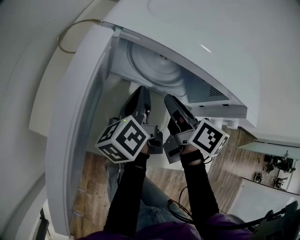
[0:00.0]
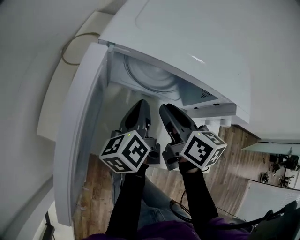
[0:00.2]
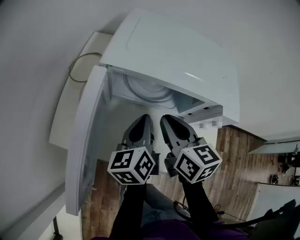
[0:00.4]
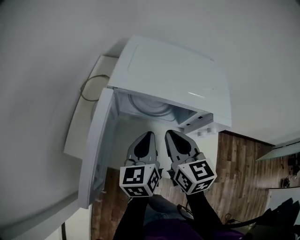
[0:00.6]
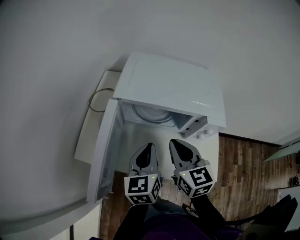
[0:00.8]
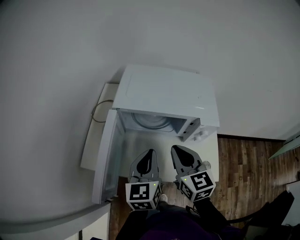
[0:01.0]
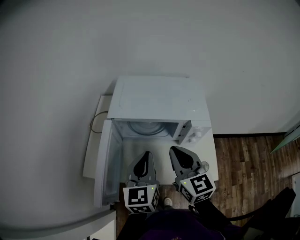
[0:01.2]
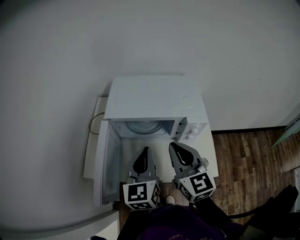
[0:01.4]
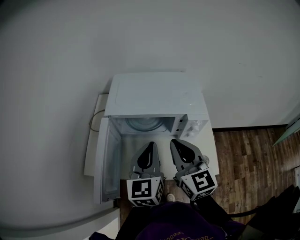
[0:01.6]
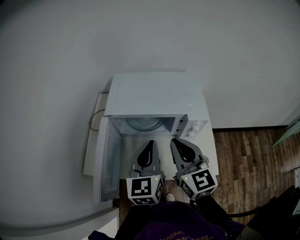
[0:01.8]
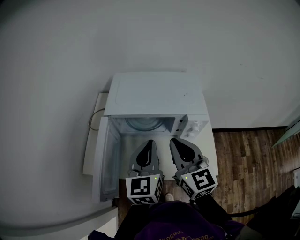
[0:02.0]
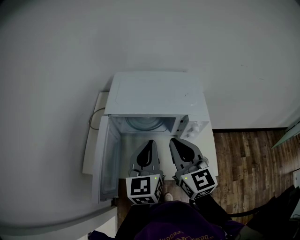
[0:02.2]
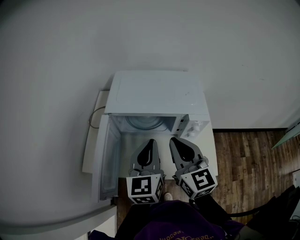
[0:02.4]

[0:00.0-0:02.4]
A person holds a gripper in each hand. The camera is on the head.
0.0 to 1.2 s: Both grippers travel together upward and backward, about 25 cm. The left gripper rotates around the line of its fingers by approximately 60 degrees, clockwise from behind, while the right gripper turns by about 40 degrees, and closes its fingers.
1.2 to 2.4 s: The grippers move only a little.

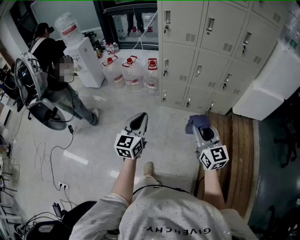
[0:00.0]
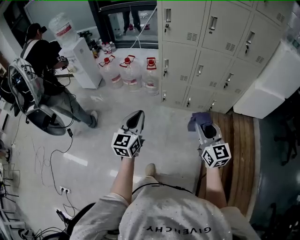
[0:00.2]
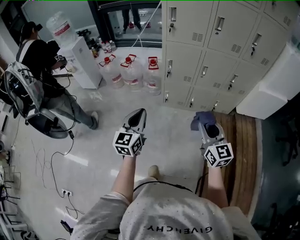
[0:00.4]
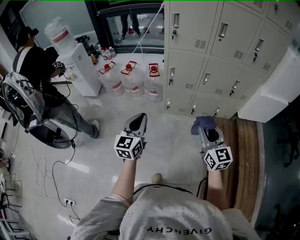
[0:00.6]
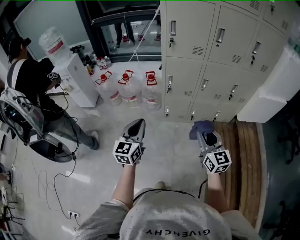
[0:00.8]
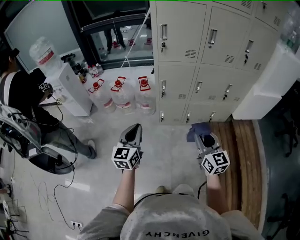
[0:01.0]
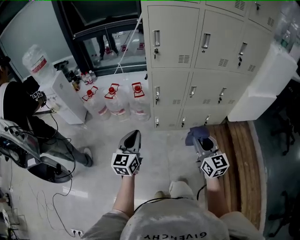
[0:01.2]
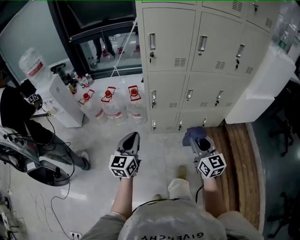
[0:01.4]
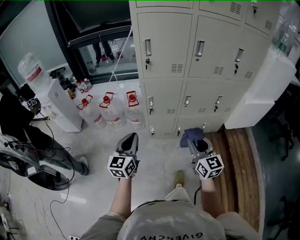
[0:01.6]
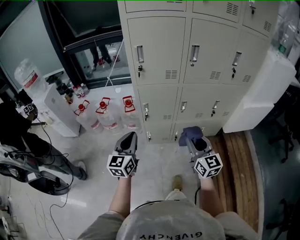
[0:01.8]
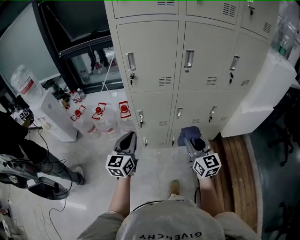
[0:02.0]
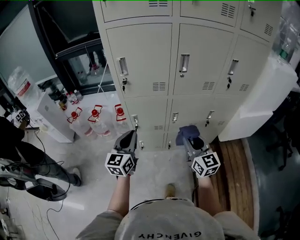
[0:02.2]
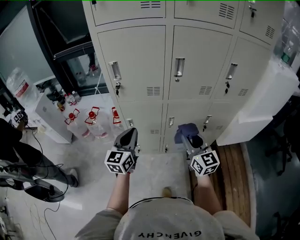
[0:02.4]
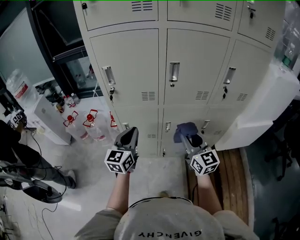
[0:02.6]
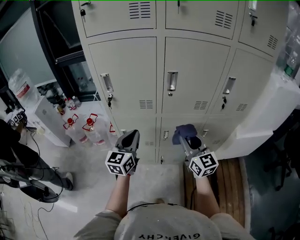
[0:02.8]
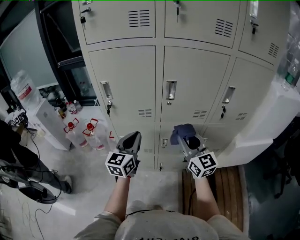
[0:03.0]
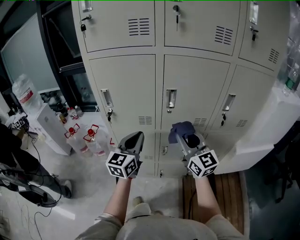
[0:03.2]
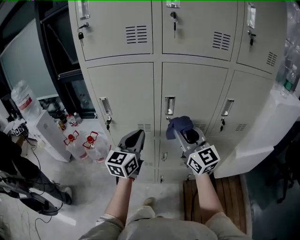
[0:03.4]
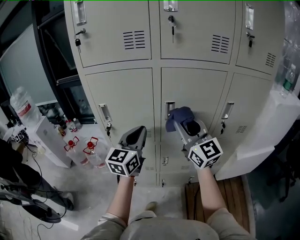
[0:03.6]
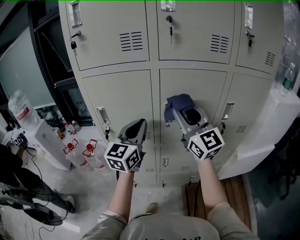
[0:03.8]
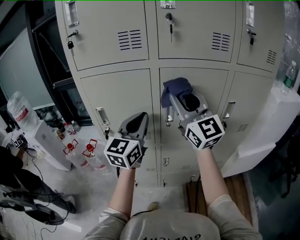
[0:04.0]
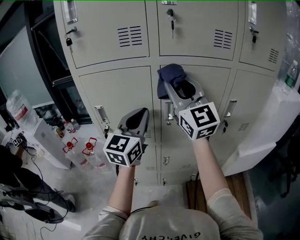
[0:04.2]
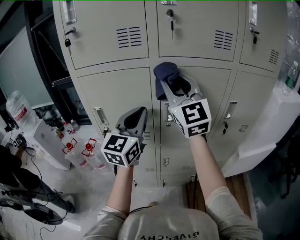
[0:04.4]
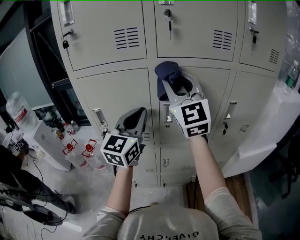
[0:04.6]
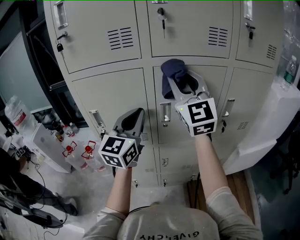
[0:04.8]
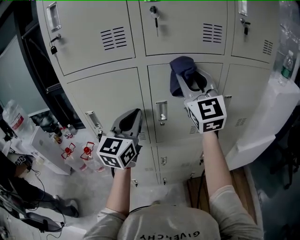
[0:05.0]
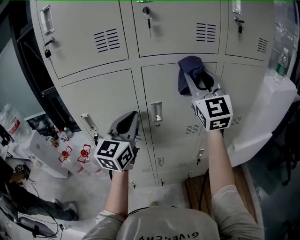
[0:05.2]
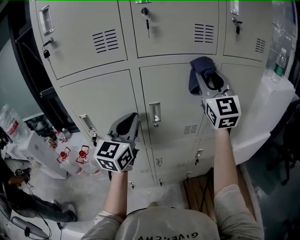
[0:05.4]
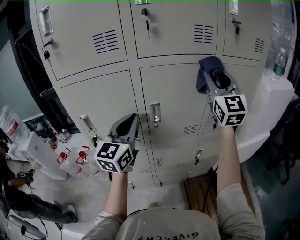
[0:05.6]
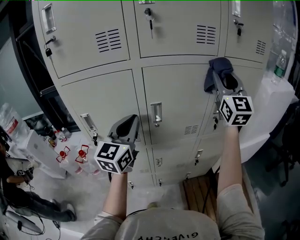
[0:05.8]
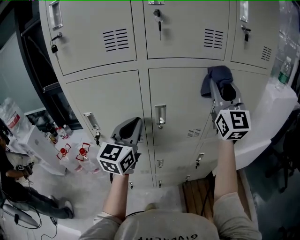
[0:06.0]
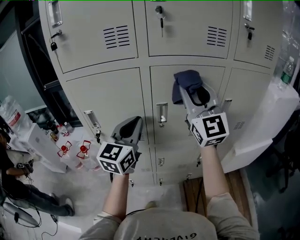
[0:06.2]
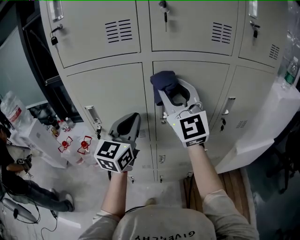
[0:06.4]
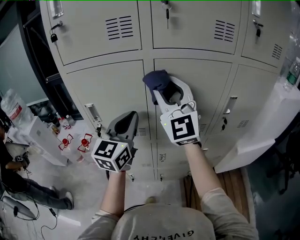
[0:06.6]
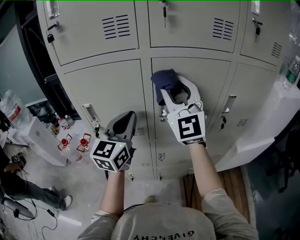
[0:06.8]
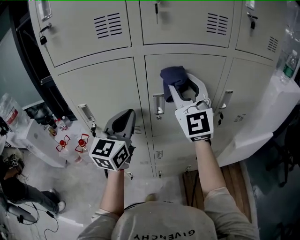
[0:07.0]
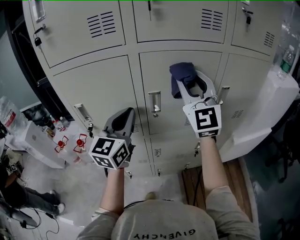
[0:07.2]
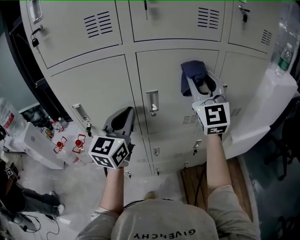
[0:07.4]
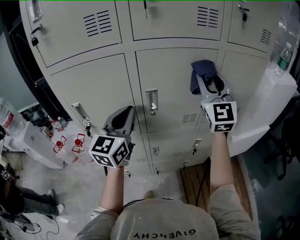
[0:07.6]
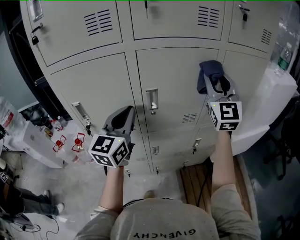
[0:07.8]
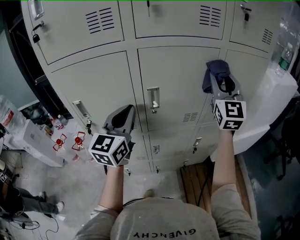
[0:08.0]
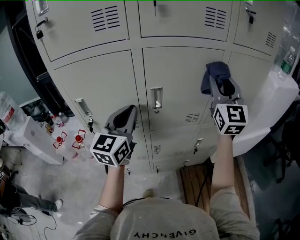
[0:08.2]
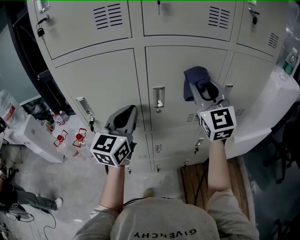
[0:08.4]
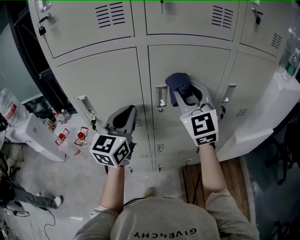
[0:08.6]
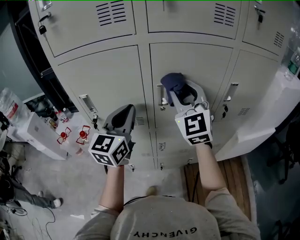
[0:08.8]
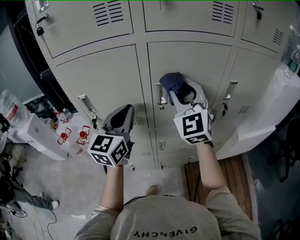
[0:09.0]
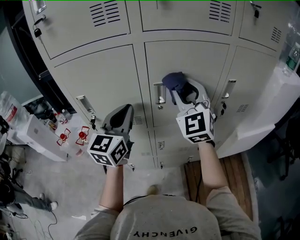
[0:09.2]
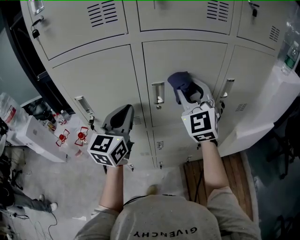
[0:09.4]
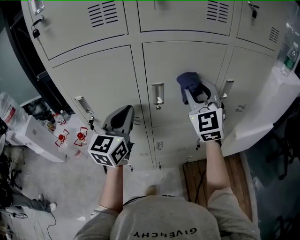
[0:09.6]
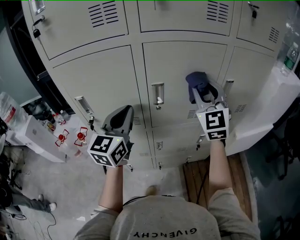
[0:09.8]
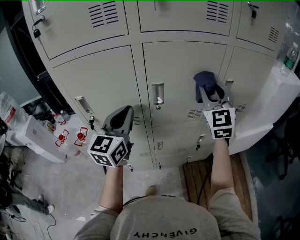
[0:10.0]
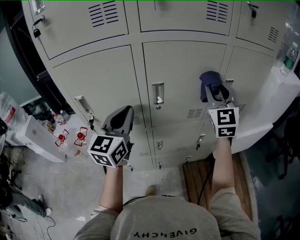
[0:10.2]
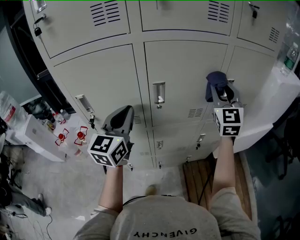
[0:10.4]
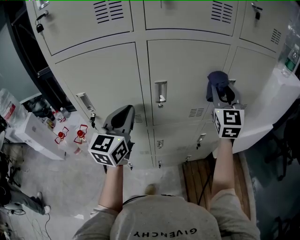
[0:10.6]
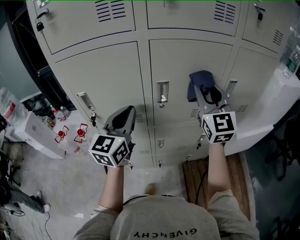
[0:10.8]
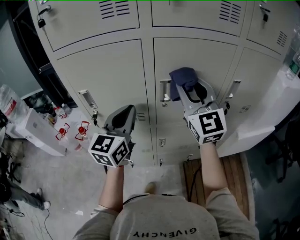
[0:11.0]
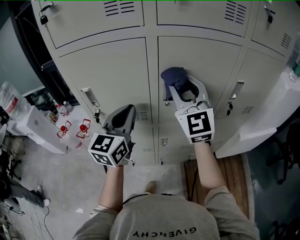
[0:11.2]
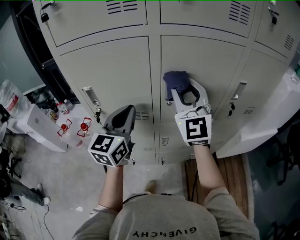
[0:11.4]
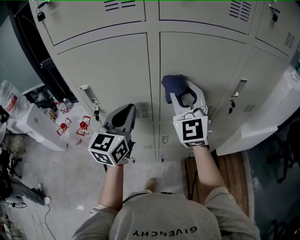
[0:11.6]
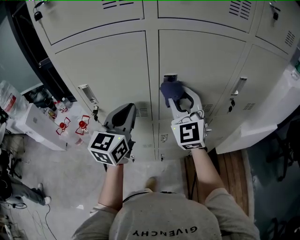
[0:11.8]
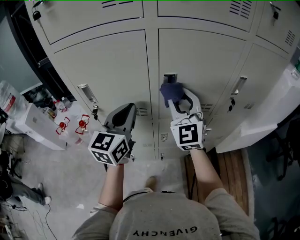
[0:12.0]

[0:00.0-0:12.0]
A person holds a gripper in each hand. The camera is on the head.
0.0 to 1.6 s: Both grippers travel together forward, about 25 cm.
1.6 to 3.0 s: The grippers both shift forward and to the right by roughly 35 cm.
3.0 to 4.4 s: Both grippers travel together upward and forward, some 25 cm. The right gripper swivels approximately 30 degrees.
4.4 to 6.0 s: The right gripper travels to the right by about 20 cm.
6.0 to 7.6 s: The right gripper goes about 5 cm downward, and goes to the left and returns, about 20 cm each way.
7.6 to 9.0 s: The right gripper is displaced to the left and downward by some 15 cm.
9.0 to 10.4 s: The right gripper travels to the right by about 15 cm.
10.4 to 12.0 s: The right gripper travels to the left by some 20 cm.

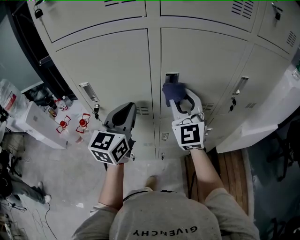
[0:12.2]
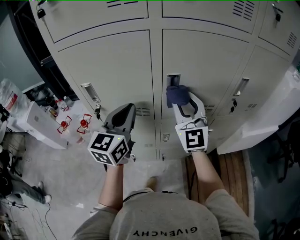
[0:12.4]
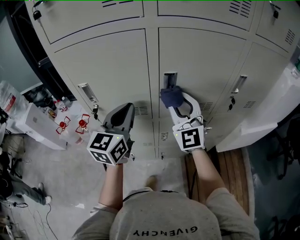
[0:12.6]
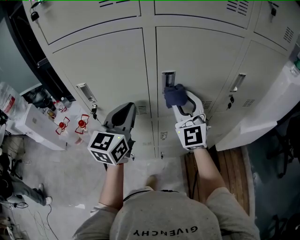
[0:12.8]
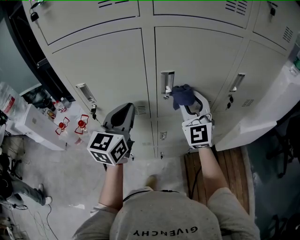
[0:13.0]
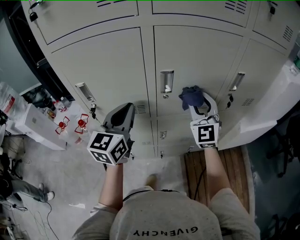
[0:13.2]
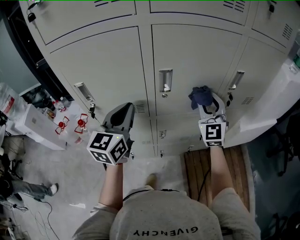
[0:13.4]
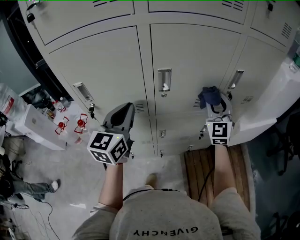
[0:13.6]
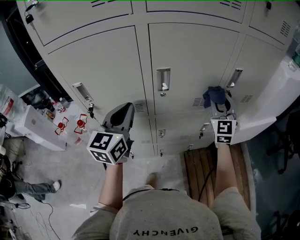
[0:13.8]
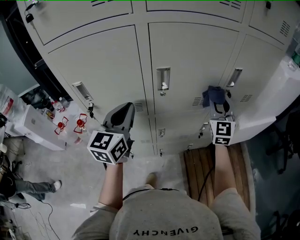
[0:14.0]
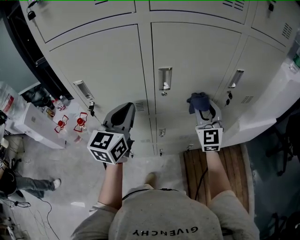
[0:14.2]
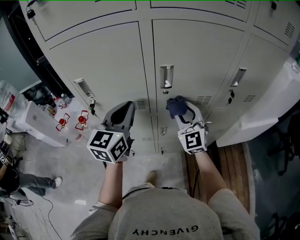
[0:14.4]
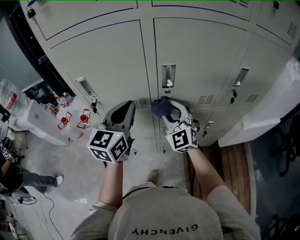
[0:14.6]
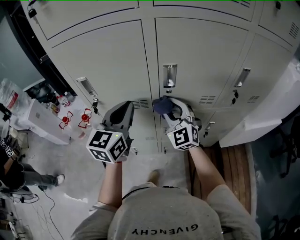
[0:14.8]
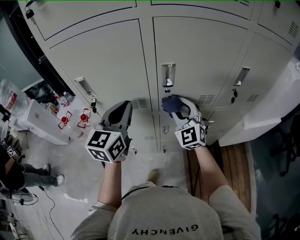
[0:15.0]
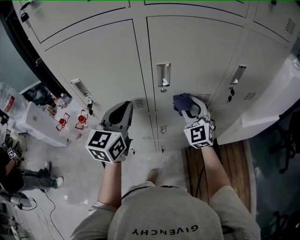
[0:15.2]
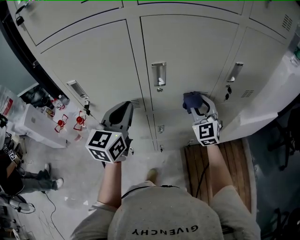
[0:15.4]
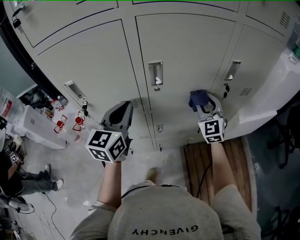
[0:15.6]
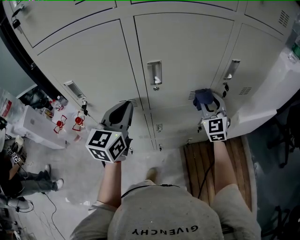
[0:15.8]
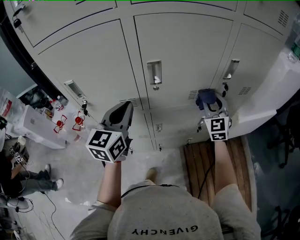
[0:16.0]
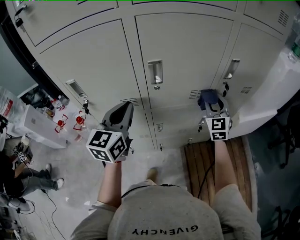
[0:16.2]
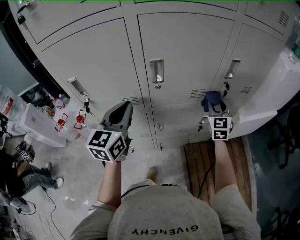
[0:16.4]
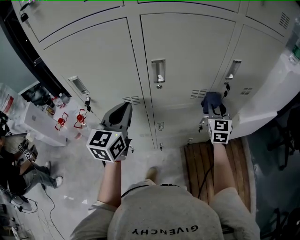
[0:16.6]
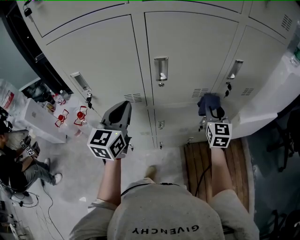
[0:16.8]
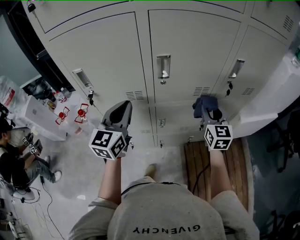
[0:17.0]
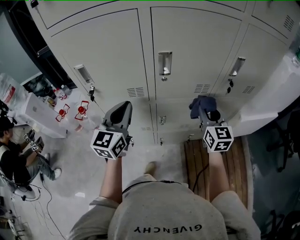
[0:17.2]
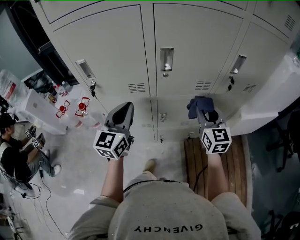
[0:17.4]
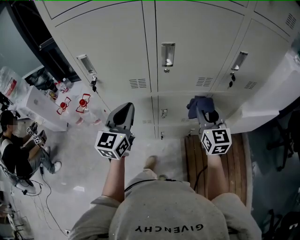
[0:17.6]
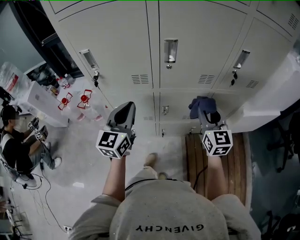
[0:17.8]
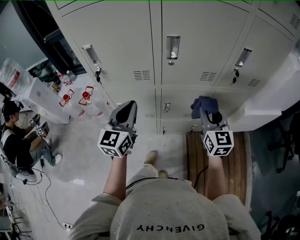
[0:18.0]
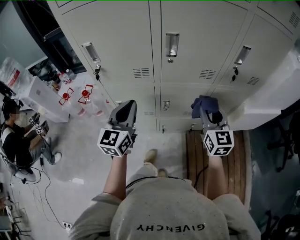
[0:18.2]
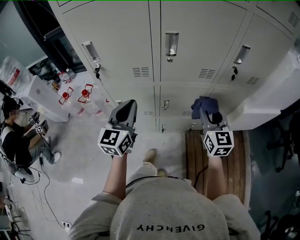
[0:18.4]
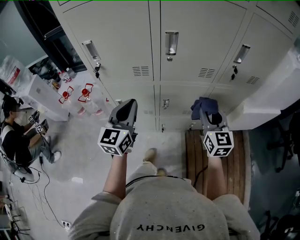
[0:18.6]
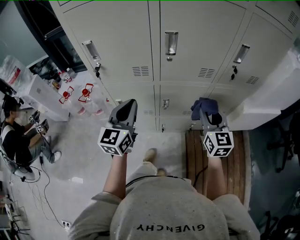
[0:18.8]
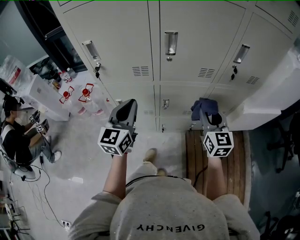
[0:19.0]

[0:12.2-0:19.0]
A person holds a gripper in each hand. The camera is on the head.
12.2 to 13.6 s: The right gripper goes roughly 20 cm to the right.
13.6 to 15.0 s: The right gripper moves to the left and downward, approximately 20 cm, and rotates some 20 degrees.
15.0 to 16.2 s: The right gripper travels to the right by some 20 cm, and turns by about 30 degrees.
16.2 to 17.6 s: The left gripper shifts roughly 10 cm downward and backward, while the right gripper heads backward and to the left, covering approximately 15 cm, and rotates some 30 degrees.
17.6 to 19.0 s: The right gripper changes place by about 5 cm.

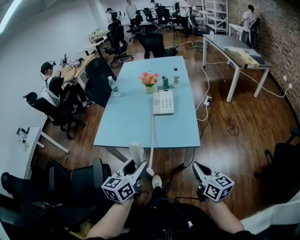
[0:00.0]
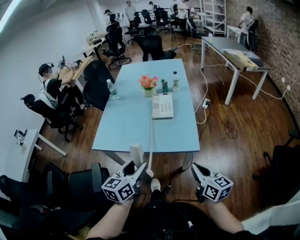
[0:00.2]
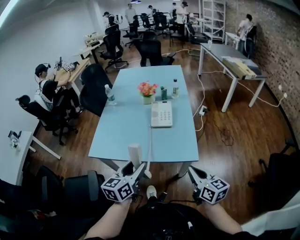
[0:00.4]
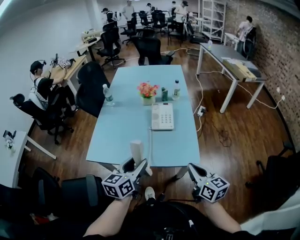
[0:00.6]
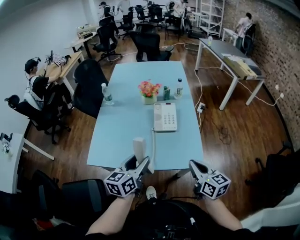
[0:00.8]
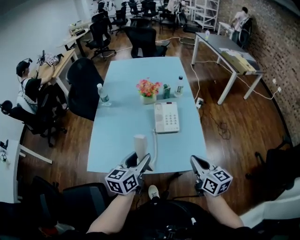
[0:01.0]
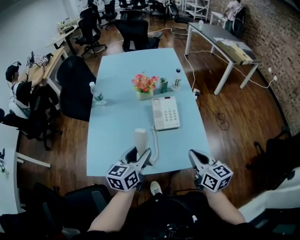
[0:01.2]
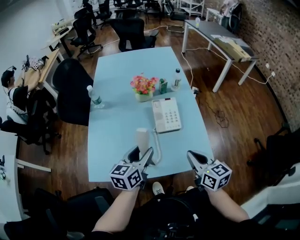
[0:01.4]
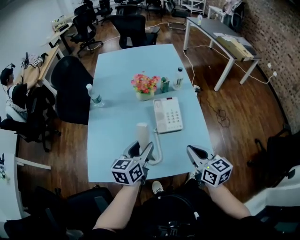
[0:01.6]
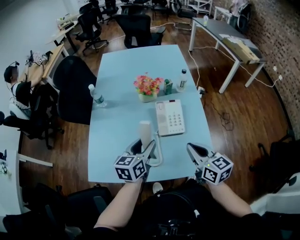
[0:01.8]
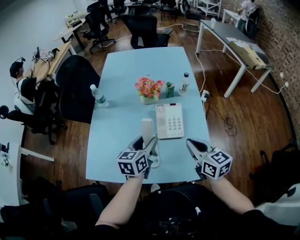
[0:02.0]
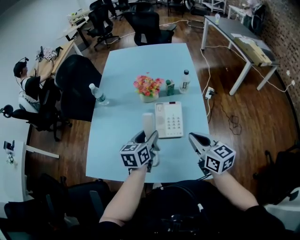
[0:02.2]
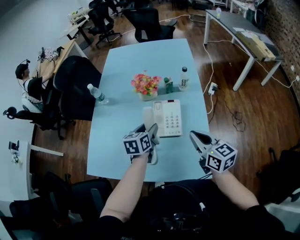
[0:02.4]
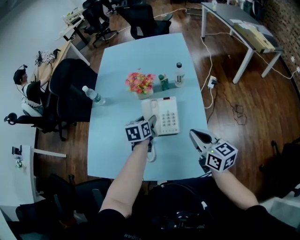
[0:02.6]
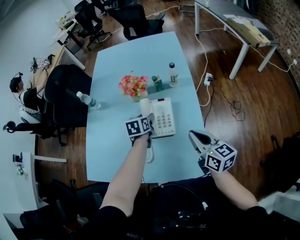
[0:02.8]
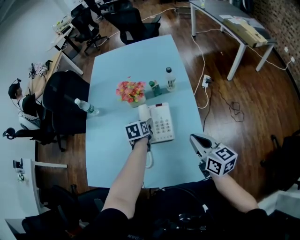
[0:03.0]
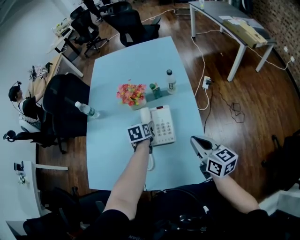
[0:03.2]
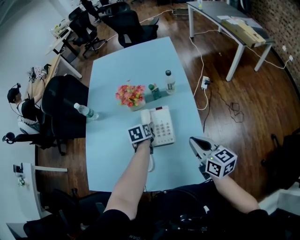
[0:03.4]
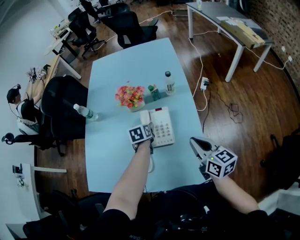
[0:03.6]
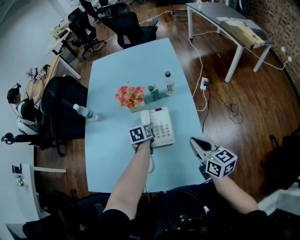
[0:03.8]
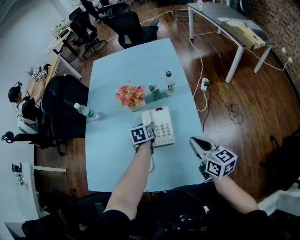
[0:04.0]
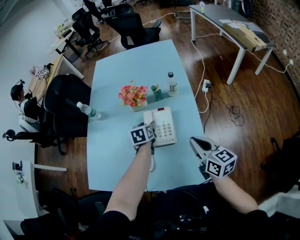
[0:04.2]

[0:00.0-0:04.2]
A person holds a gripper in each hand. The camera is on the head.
0.0 to 1.4 s: The left gripper moves forward, about 30 cm, while the right gripper moves forward and to the left, roughly 30 cm.
1.4 to 2.8 s: The right gripper goes some 20 cm forward and to the right. Meanwhile the left gripper moves forward, downward and to the right, roughly 30 cm, and rotates approximately 30 degrees.
2.8 to 4.2 s: The grippers make only small movements.
